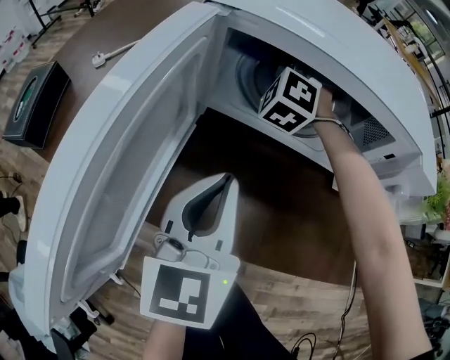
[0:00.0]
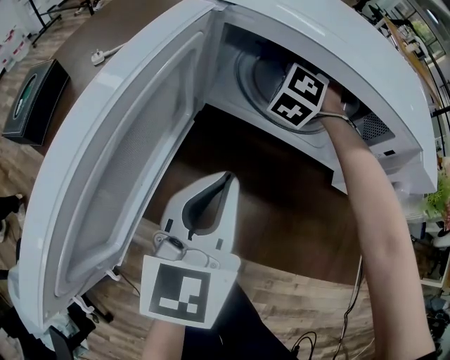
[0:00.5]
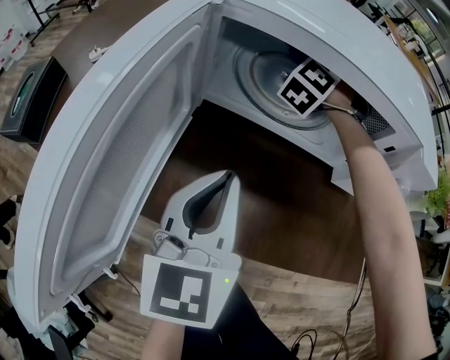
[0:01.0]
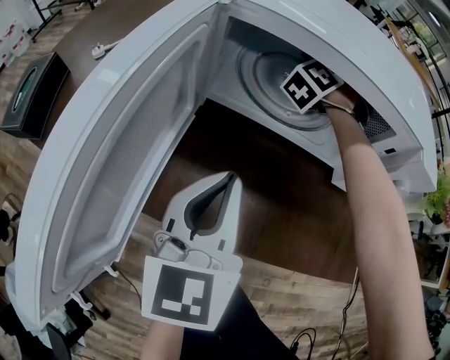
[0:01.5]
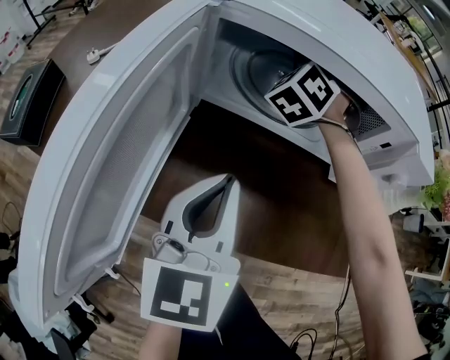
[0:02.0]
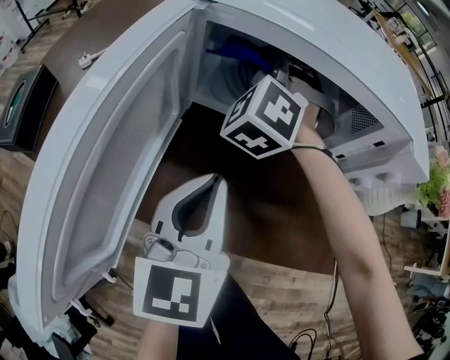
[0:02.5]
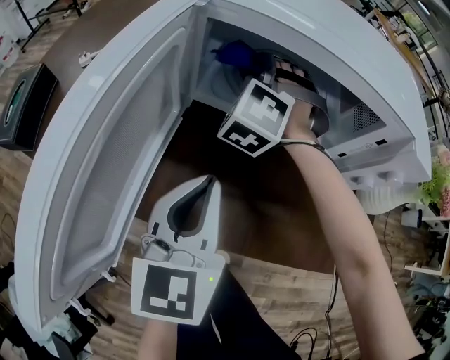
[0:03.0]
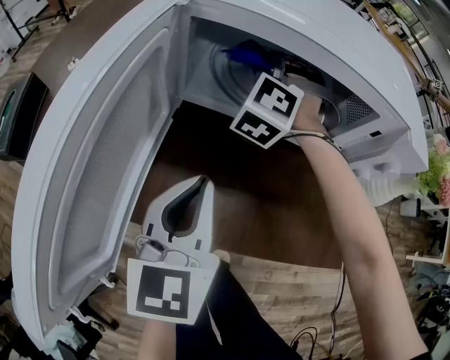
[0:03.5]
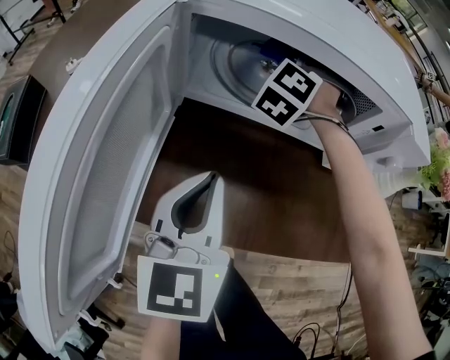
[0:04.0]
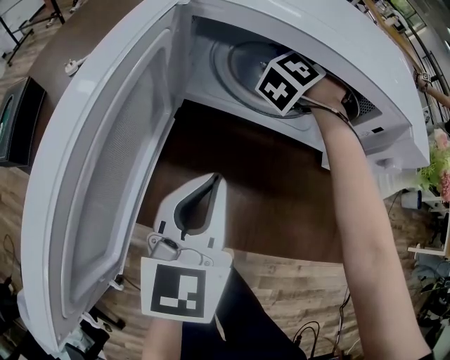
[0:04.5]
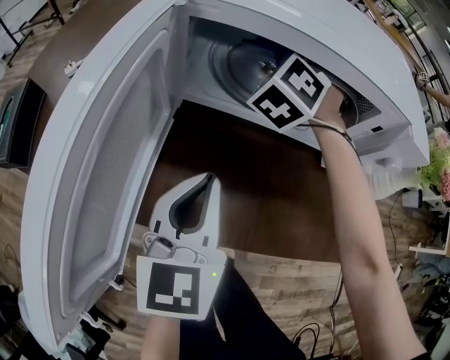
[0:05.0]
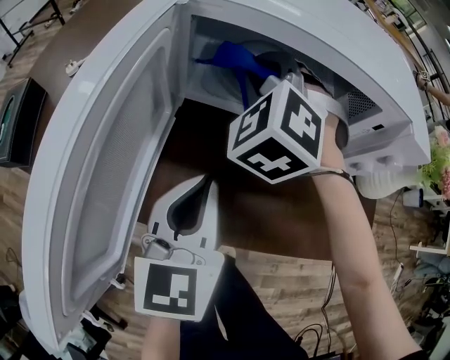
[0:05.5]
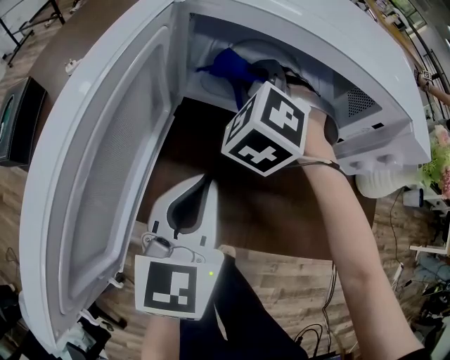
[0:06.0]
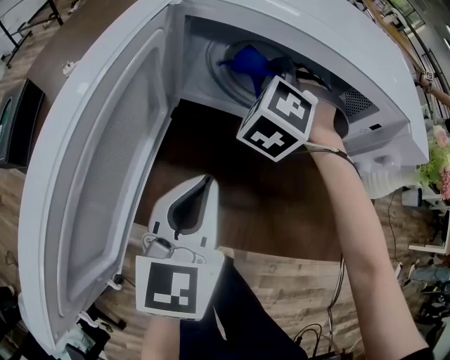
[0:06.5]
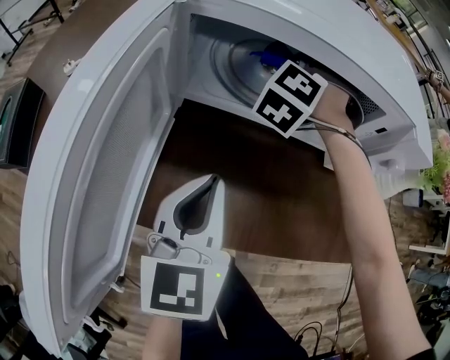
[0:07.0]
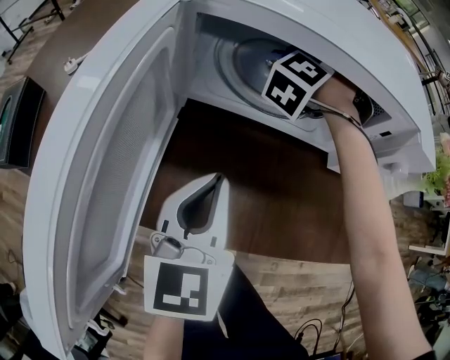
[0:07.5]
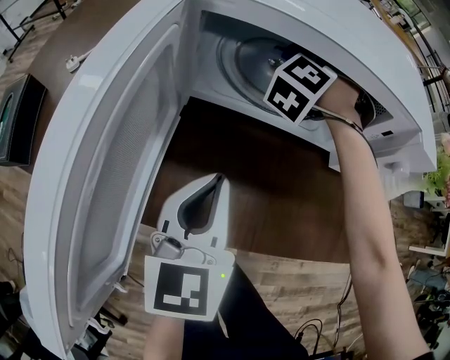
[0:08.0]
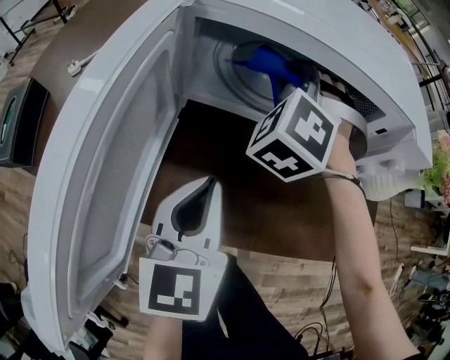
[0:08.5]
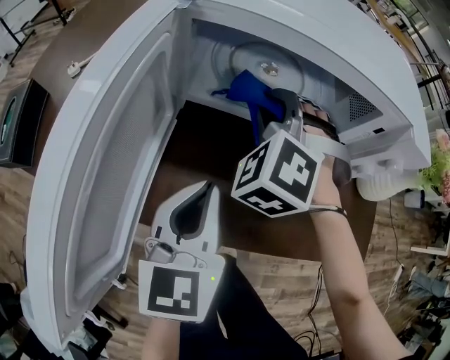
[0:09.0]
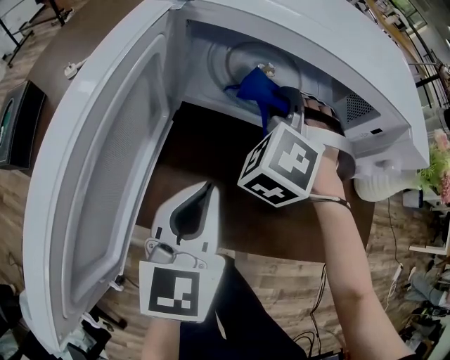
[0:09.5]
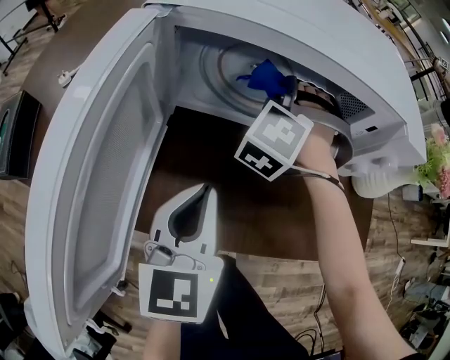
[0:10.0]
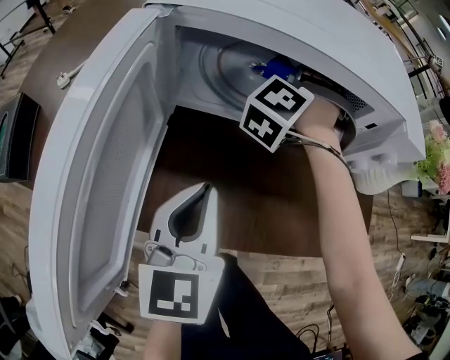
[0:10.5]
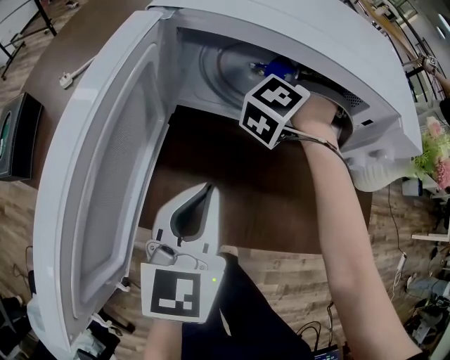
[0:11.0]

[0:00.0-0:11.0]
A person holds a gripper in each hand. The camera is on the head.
0:00.0 to 0:02.0: The right gripper travels to the right by about 5 cm, and changes its angle by some 20 degrees.
0:02.0 to 0:03.5: The right gripper heads backward, covering approximately 5 cm.
0:03.5 to 0:05.5: The right gripper shifts approximately 5 cm backward.
0:05.5 to 0:07.5: The right gripper is displaced forward, to the right and downward by roughly 15 cm, and changes its angle by roughly 40 degrees.
0:07.5 to 0:09.0: The right gripper travels backward by about 15 cm, and turns by roughly 30 degrees.
0:09.0 to 0:11.0: The right gripper travels forward and to the right by about 15 cm, and changes its angle by roughly 30 degrees.

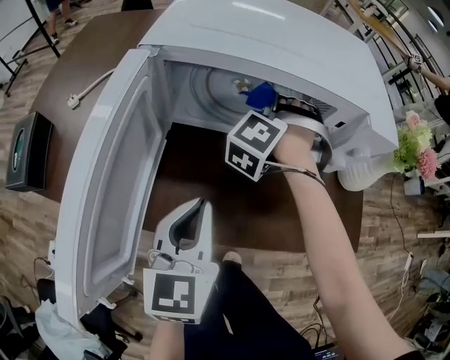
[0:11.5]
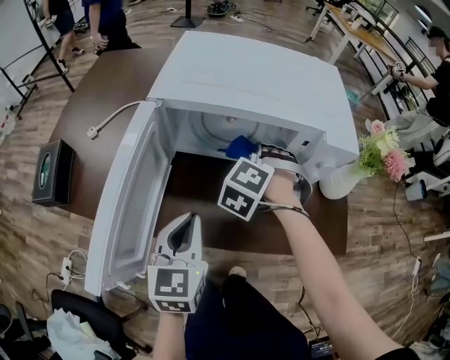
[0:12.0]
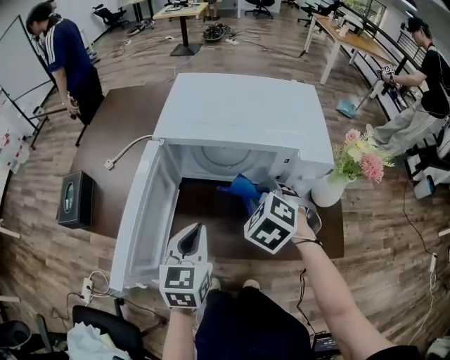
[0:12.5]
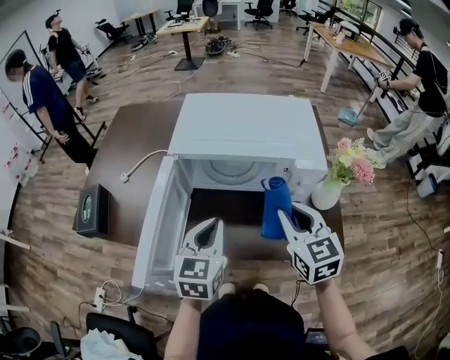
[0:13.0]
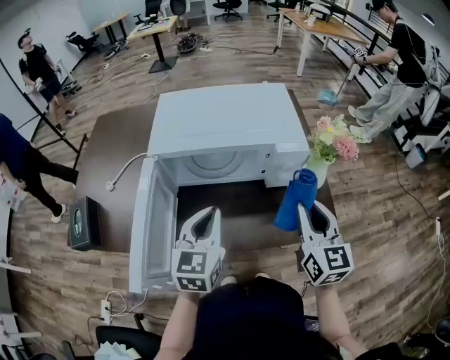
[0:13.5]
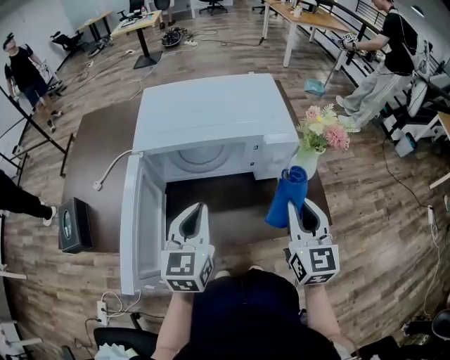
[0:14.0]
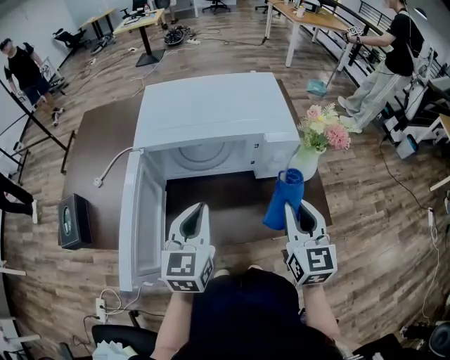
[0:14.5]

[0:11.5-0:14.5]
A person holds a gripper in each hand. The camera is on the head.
0:11.5 to 0:13.0: The right gripper shifts by approximately 30 cm, and changes its angle by some 90 degrees; the left gripper travels upward by approximately 10 cm.
0:13.0 to 0:14.5: The right gripper moves to the right, some 10 cm, and swivels some 20 degrees.

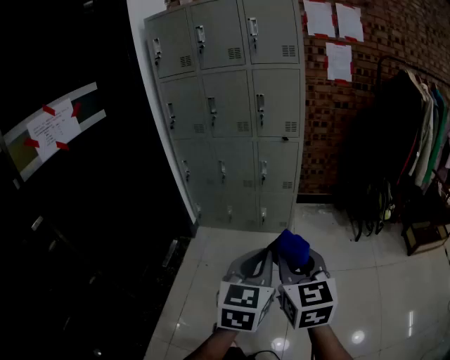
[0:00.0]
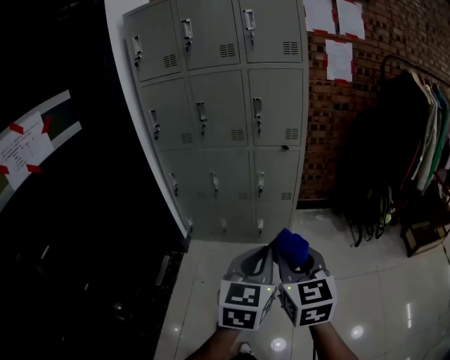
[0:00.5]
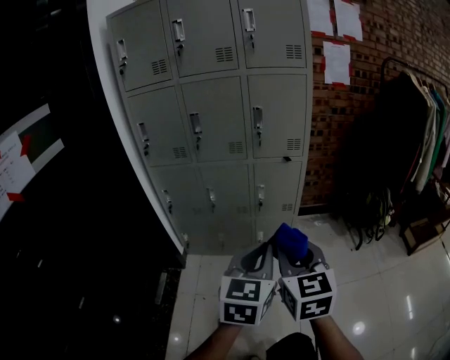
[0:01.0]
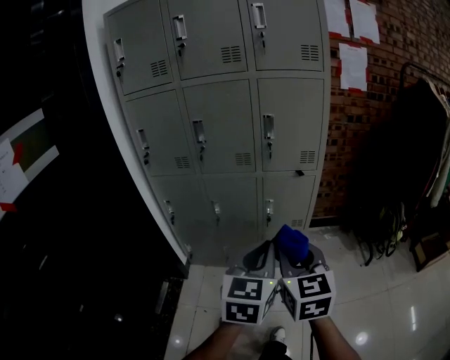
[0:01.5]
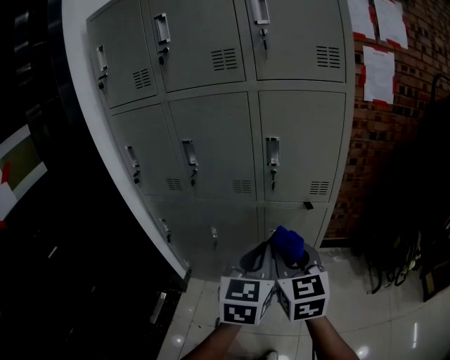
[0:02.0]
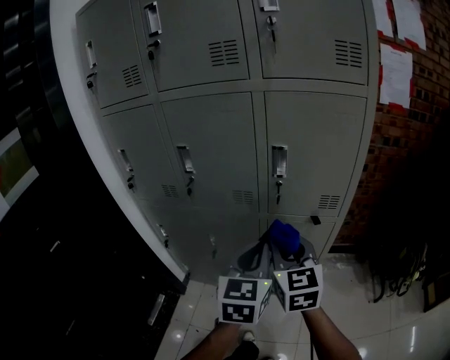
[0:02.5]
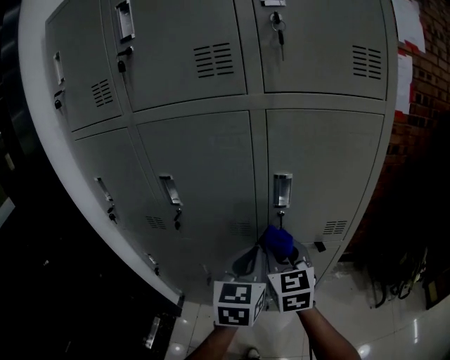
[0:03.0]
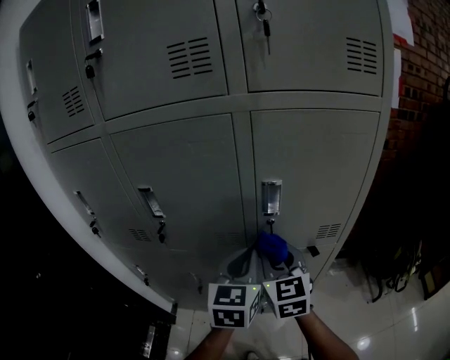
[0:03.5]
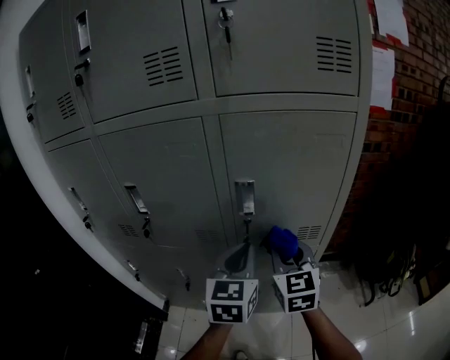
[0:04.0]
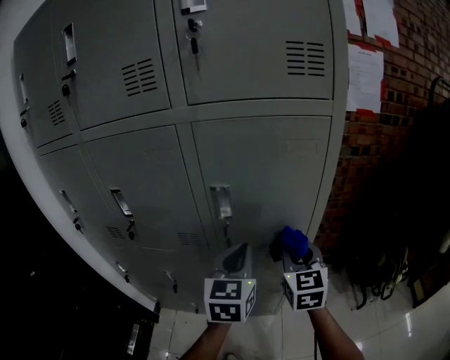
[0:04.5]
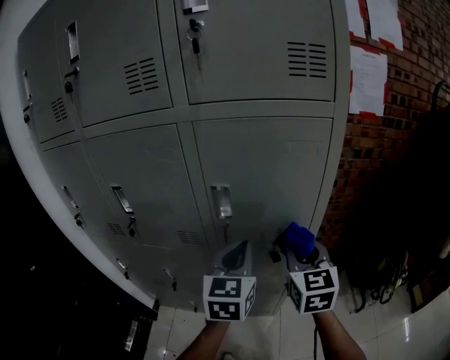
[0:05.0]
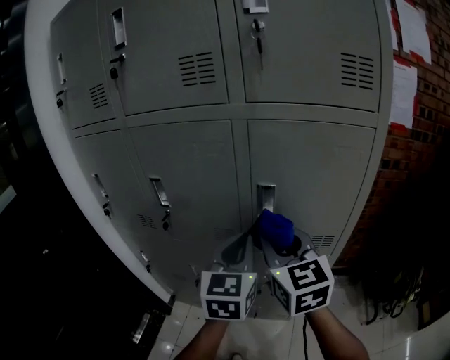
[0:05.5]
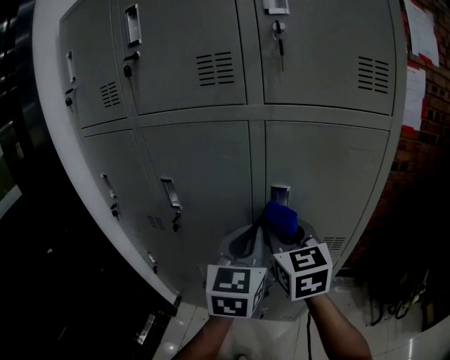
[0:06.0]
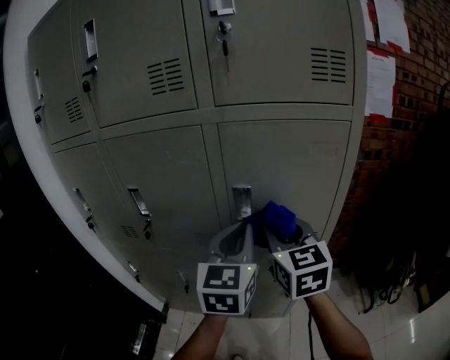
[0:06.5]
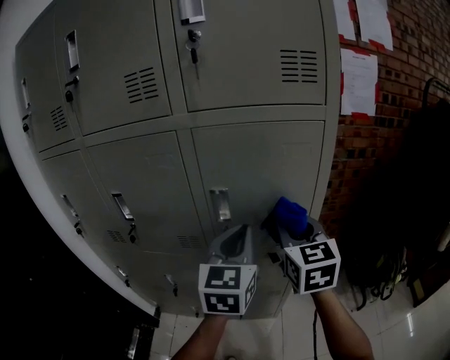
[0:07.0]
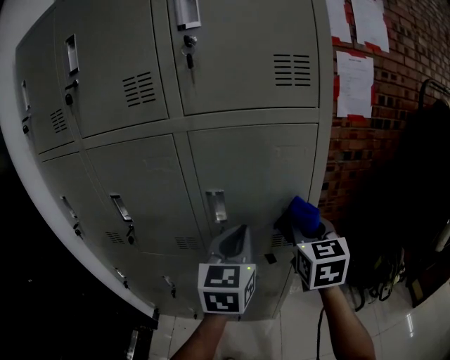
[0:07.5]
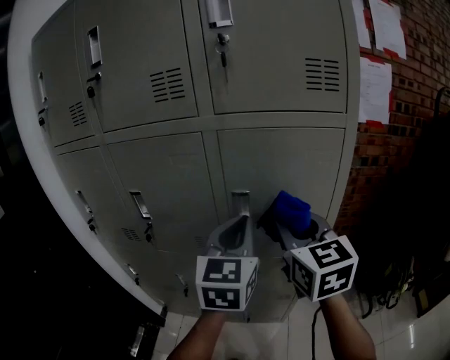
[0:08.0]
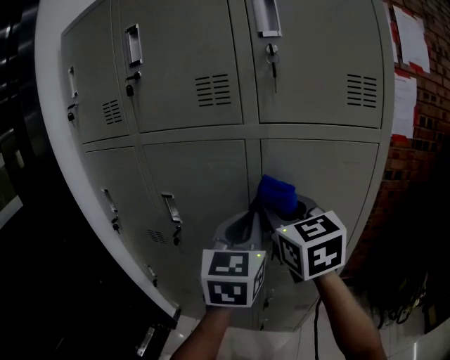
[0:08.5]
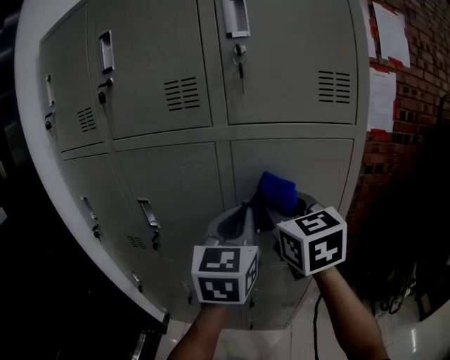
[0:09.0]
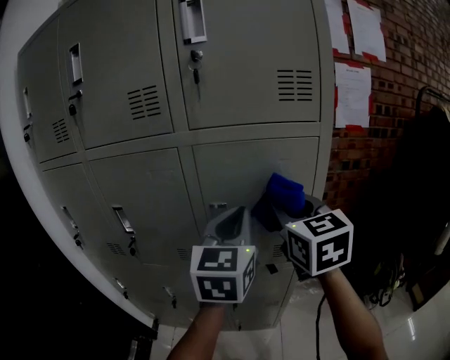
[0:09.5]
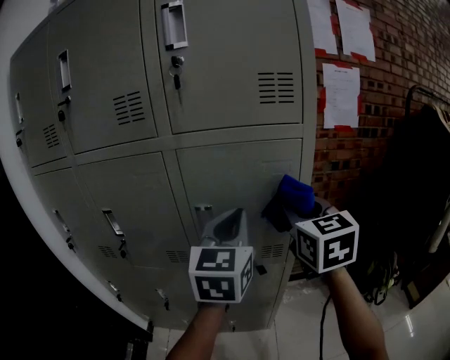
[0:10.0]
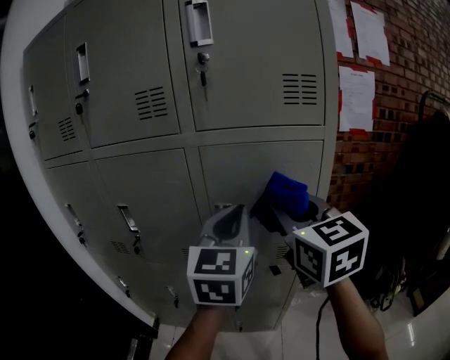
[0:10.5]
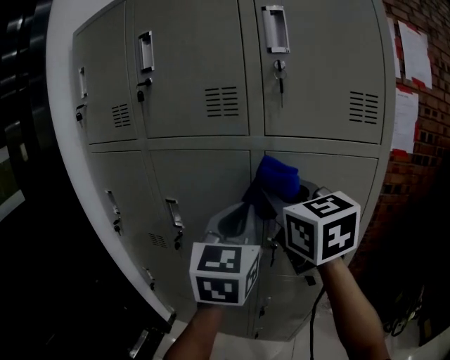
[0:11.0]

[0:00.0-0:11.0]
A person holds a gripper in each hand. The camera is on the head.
0:00.0 to 0:02.0: The pair of grippers is taken forward, some 60 cm.
0:02.0 to 0:03.5: The two grippers go approximately 25 cm forward.
0:03.5 to 0:05.5: The left gripper travels upward by approximately 5 cm, and reaches some 10 cm to the right, then returns; the right gripper heads upward, covering some 10 cm, and travels to the right and back again, about 20 cm each way.
0:05.5 to 0:07.5: The left gripper is displaced to the right by roughly 10 cm. Meanwhile the right gripper travels to the right by some 20 cm, and rotates roughly 20 degrees.
0:07.5 to 0:09.0: The left gripper moves upward and to the left, approximately 10 cm, while the right gripper travels to the left and upward by some 20 cm.
0:09.0 to 0:11.0: The right gripper is displaced upward by some 5 cm, and reaches roughly 15 cm to the right, then returns; the left gripper travels to the right and back again, roughly 10 cm each way.

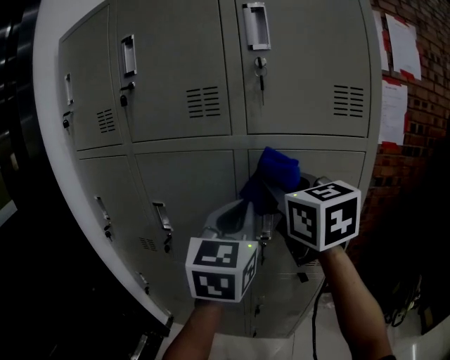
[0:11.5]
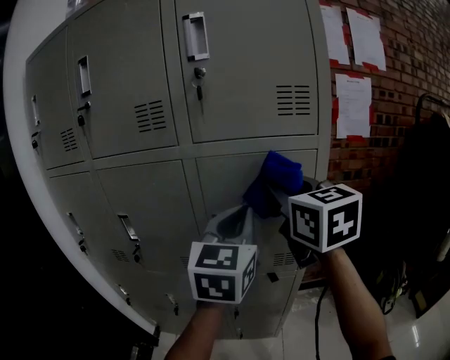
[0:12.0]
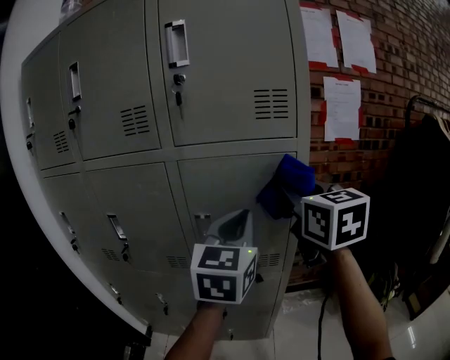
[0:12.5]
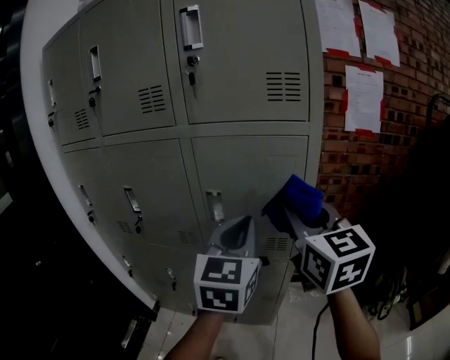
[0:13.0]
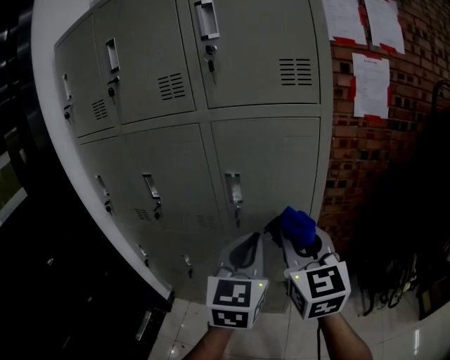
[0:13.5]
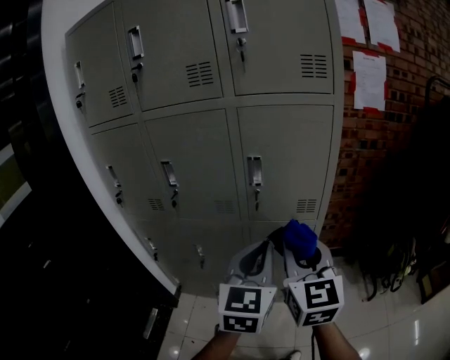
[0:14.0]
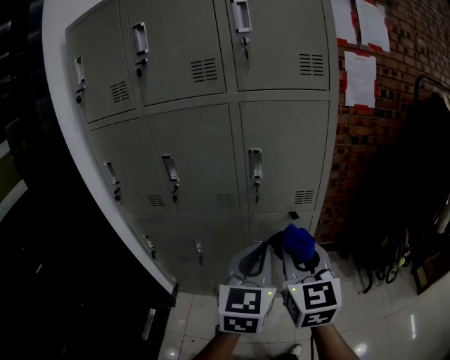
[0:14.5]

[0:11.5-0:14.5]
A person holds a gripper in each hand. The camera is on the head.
0:11.5 to 0:13.0: The left gripper shifts approximately 15 cm to the right and downward, while the right gripper is displaced to the right and backward by approximately 20 cm.
0:13.0 to 0:14.5: Both grippers travel together backward, downward and to the left, some 25 cm.
